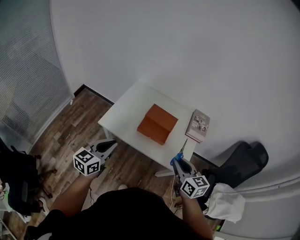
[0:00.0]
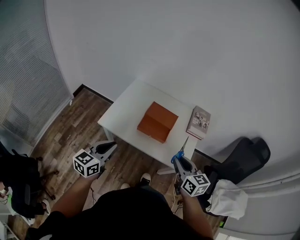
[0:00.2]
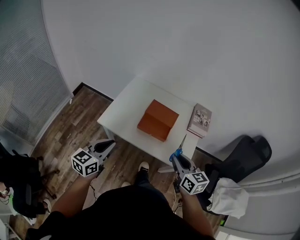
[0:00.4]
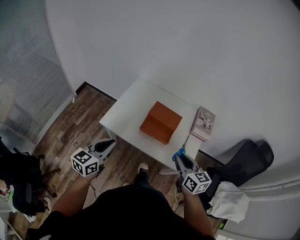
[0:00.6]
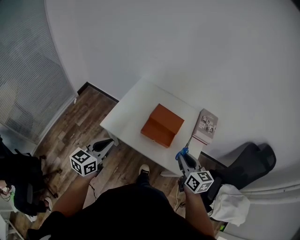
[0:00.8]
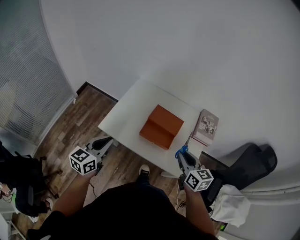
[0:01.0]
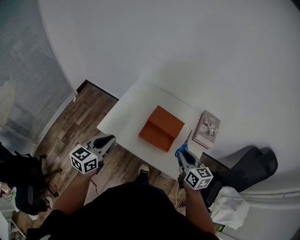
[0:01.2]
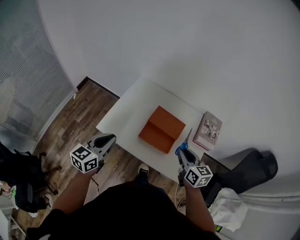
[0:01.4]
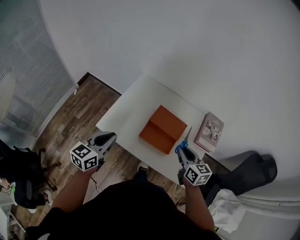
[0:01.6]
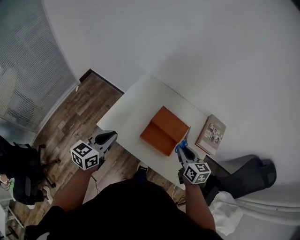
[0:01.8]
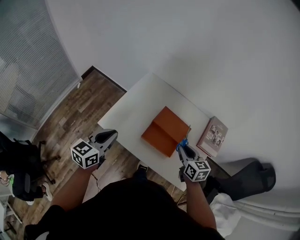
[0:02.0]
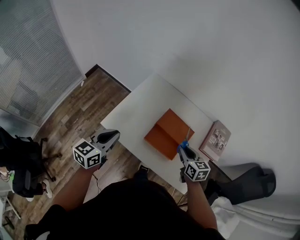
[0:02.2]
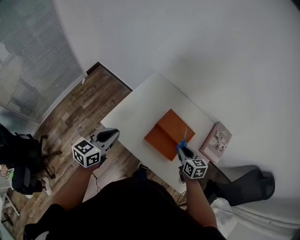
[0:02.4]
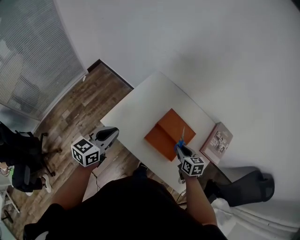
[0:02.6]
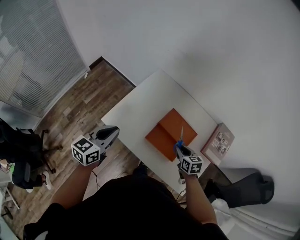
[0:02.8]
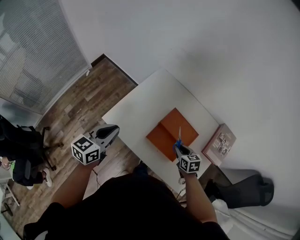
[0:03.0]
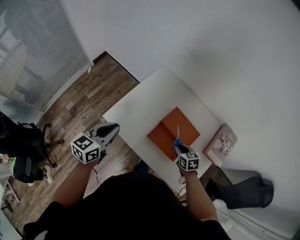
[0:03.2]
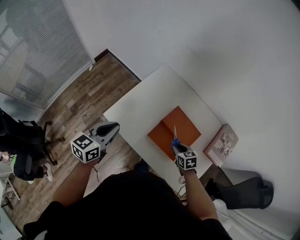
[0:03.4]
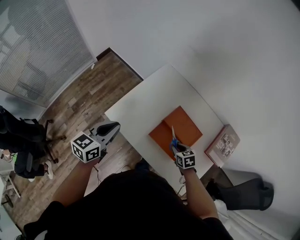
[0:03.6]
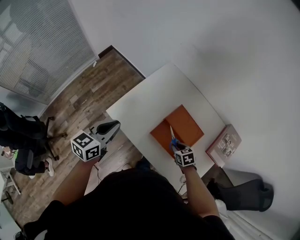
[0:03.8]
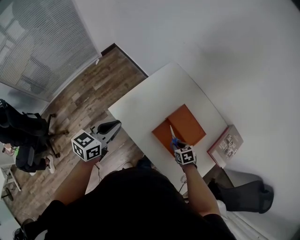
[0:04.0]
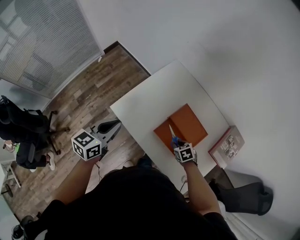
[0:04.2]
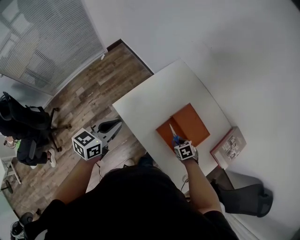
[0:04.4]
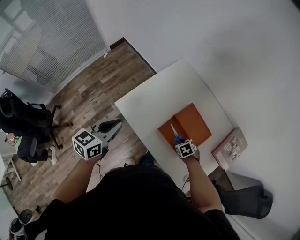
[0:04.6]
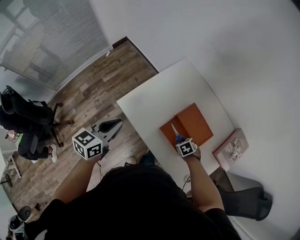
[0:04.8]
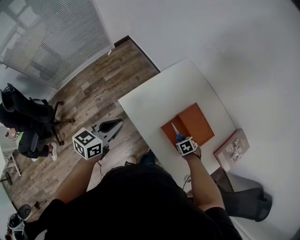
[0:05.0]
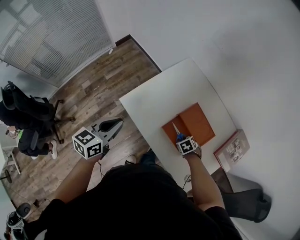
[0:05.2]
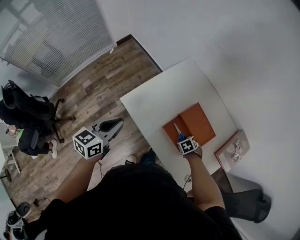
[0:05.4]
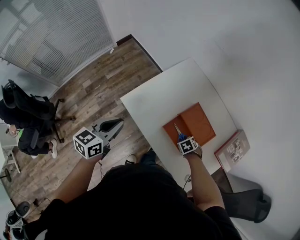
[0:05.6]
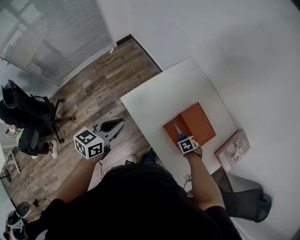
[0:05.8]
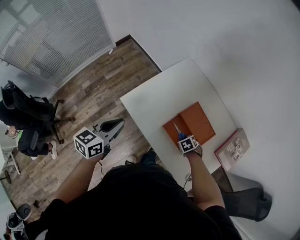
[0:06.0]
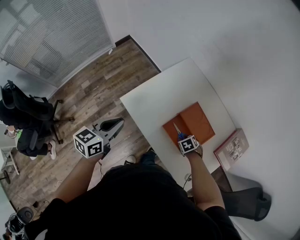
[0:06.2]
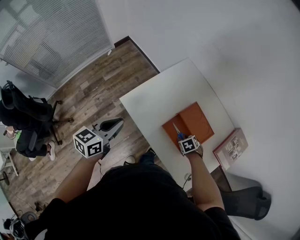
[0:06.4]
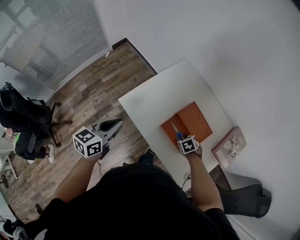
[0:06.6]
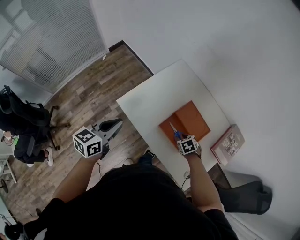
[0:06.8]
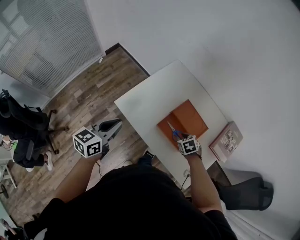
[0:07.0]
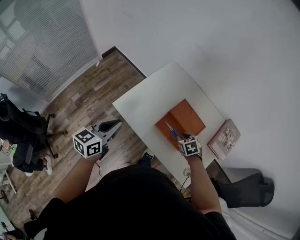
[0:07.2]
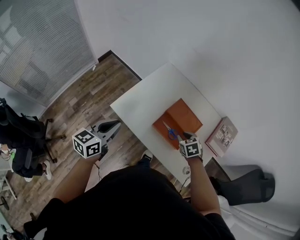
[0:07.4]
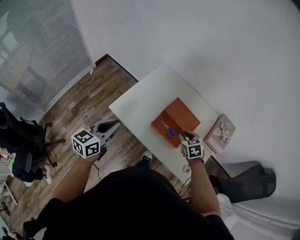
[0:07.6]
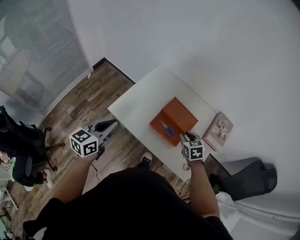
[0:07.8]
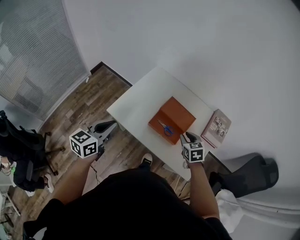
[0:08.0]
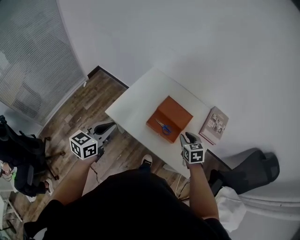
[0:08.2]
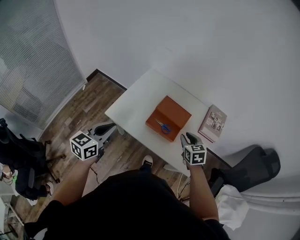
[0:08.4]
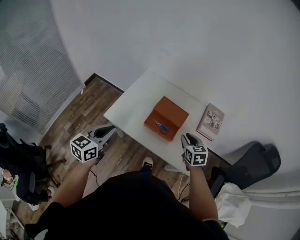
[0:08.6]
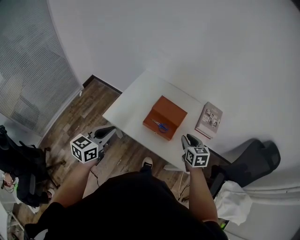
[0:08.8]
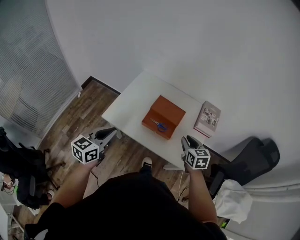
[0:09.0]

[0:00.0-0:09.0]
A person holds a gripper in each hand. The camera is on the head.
0:00.0 to 0:01.6: The two grippers go about 20 cm forward.
0:01.6 to 0:03.0: The right gripper travels downward and forward by some 20 cm, and changes its angle by about 30 degrees; the left gripper goes roughly 5 cm forward.
0:03.0 to 0:04.4: The right gripper is displaced downward by roughly 10 cm, and changes its angle by approximately 30 degrees.
0:04.4 to 0:06.0: The grippers stay close to where they were, moving slightly.
0:06.0 to 0:07.6: The left gripper ends up approximately 5 cm from where it was, while the right gripper is displaced upward by some 20 cm, and rotates approximately 30 degrees.
0:07.6 to 0:09.0: The left gripper goes roughly 5 cm backward; the right gripper heads backward, upward and to the right, covering approximately 15 cm, and rotates some 30 degrees.

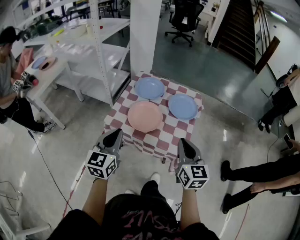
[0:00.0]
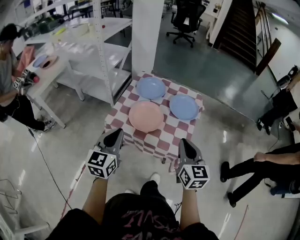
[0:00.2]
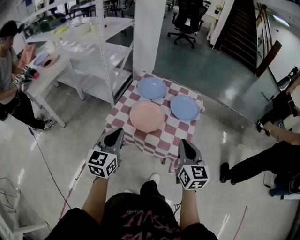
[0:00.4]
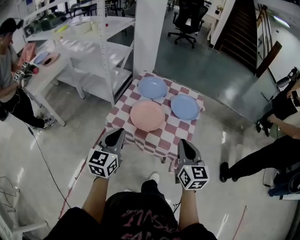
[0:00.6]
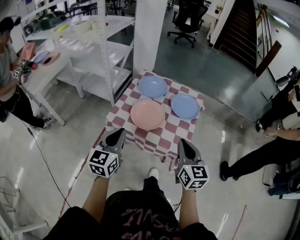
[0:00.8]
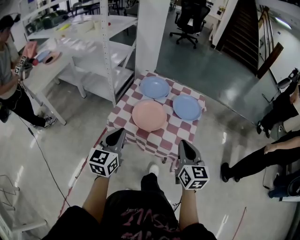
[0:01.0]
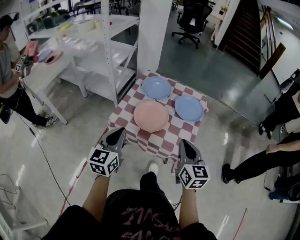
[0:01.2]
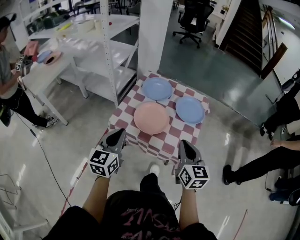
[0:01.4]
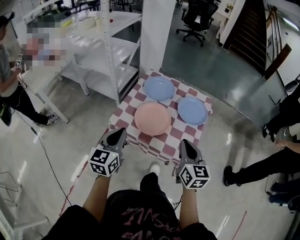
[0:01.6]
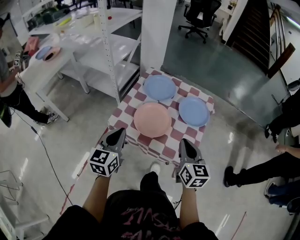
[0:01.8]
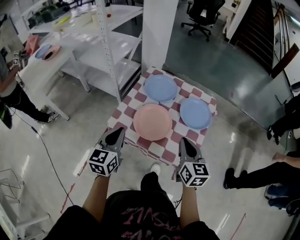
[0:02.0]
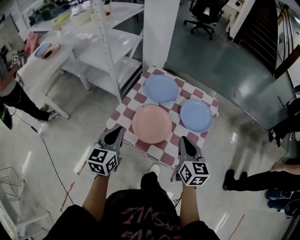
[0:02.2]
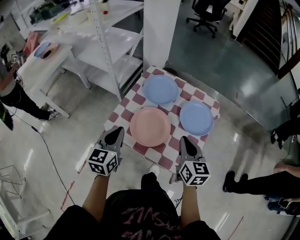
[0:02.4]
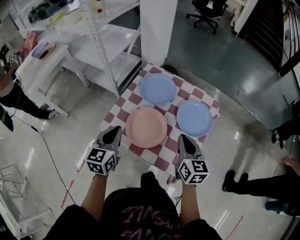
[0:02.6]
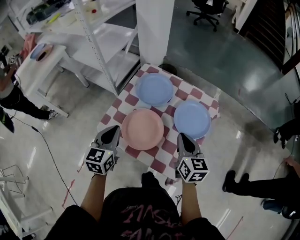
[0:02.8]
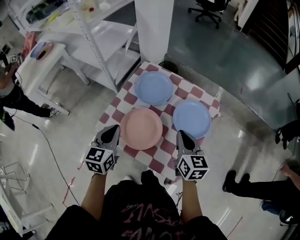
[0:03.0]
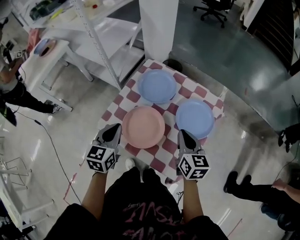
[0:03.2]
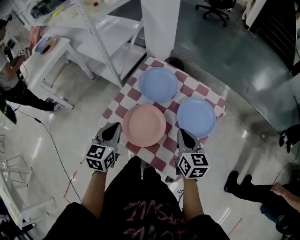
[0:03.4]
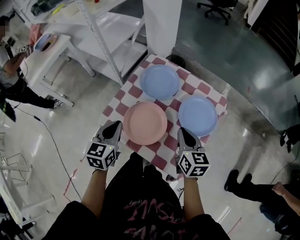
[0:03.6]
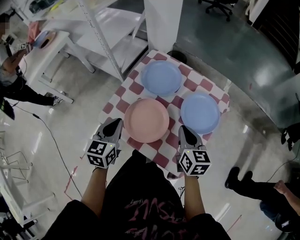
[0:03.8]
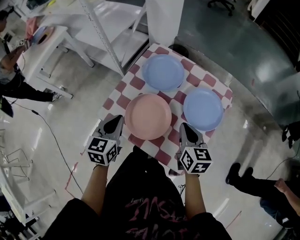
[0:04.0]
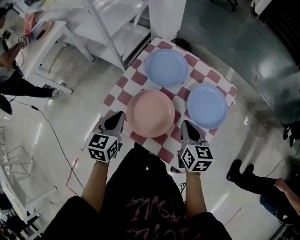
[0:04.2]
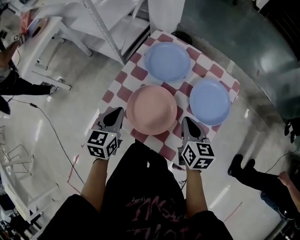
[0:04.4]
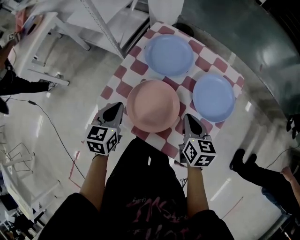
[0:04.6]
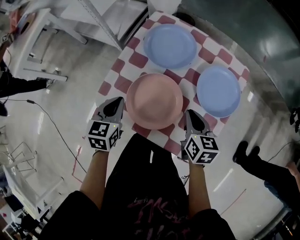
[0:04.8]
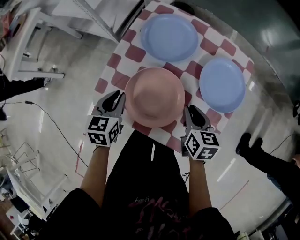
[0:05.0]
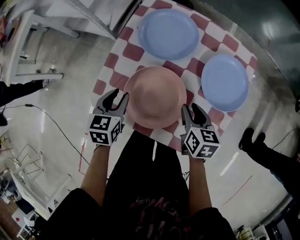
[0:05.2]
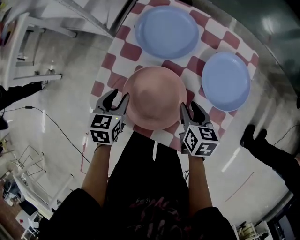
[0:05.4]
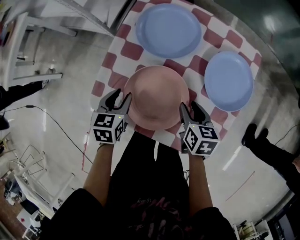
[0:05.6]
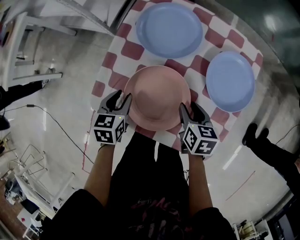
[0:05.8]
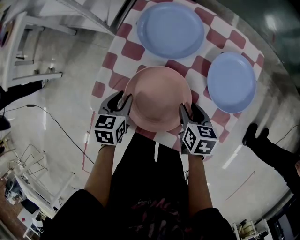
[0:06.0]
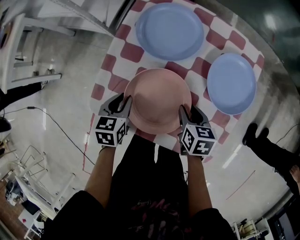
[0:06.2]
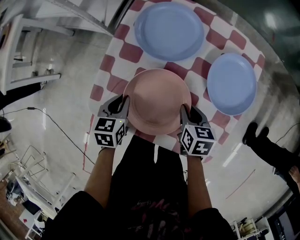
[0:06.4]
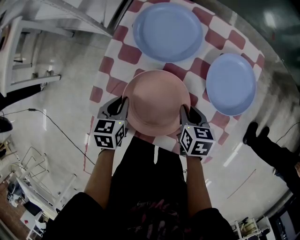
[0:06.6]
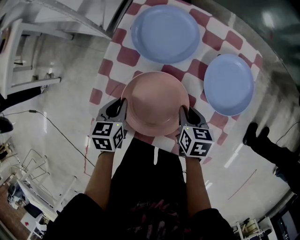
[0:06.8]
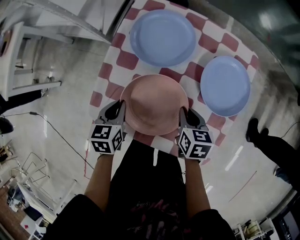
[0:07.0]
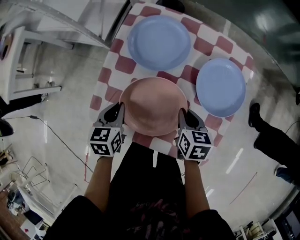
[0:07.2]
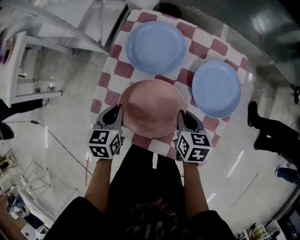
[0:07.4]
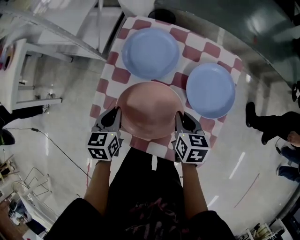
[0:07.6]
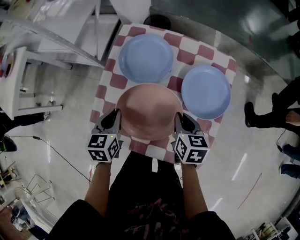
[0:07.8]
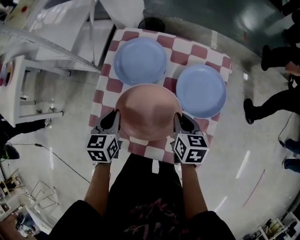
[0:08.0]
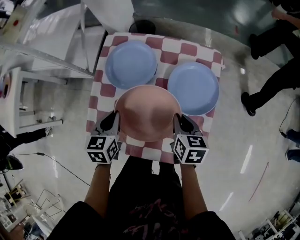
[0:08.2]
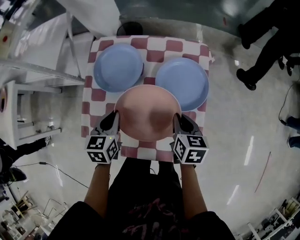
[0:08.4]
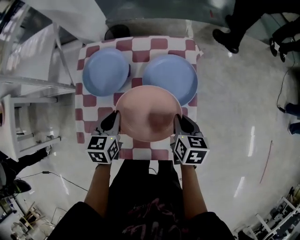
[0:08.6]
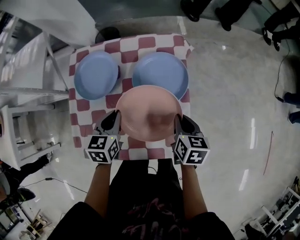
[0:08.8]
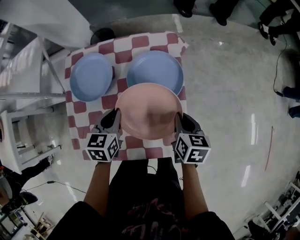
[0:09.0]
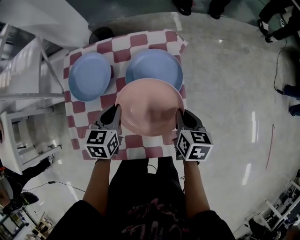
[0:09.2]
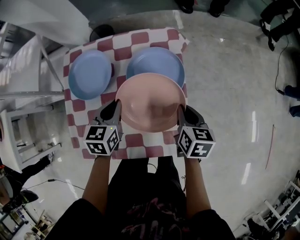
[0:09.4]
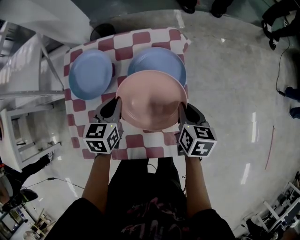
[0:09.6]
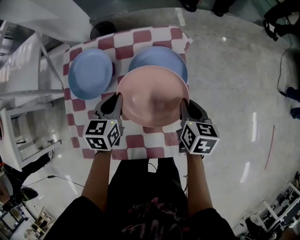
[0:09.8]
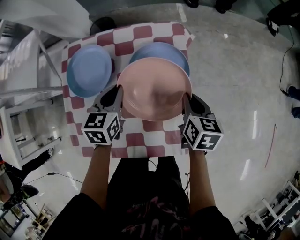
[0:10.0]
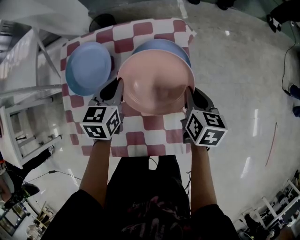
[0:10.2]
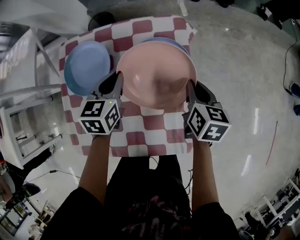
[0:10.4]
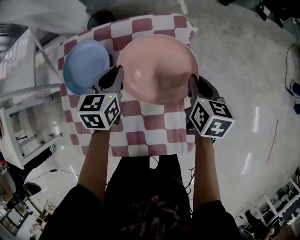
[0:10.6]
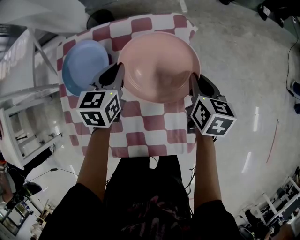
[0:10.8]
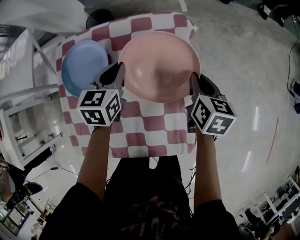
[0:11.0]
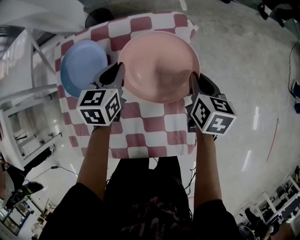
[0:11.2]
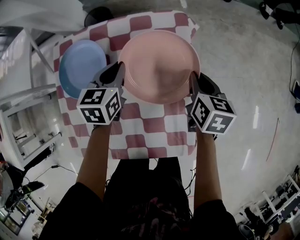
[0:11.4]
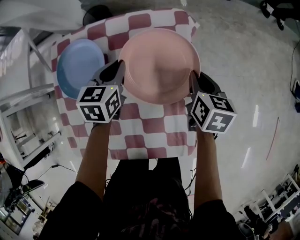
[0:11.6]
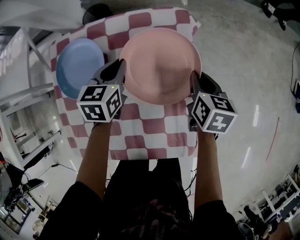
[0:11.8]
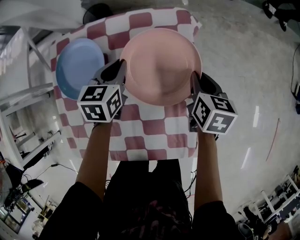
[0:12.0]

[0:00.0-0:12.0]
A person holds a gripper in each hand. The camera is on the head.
0:00.0 to 0:01.6: The right gripper goes about 5 cm forward. The left gripper changes place by about 5 cm.
0:01.6 to 0:03.0: The left gripper goes approximately 20 cm forward and to the right. Meanwhile the right gripper travels forward by some 20 cm.
0:03.0 to 0:04.4: The two grippers go some 10 cm downward.
0:04.4 to 0:06.0: Both grippers travel together downward, approximately 15 cm. The right gripper rotates about 20 degrees, and opens up. The left gripper opens its fingers.
0:06.0 to 0:07.6: The two grippers go about 5 cm upward. The right gripper closes its fingers. Meanwhile the left gripper closes its fingers.
0:07.6 to 0:09.0: The left gripper moves roughly 20 cm, and rotates approximately 30 degrees, while the right gripper changes place by about 20 cm, and swivels approximately 30 degrees.
0:09.0 to 0:10.4: The two grippers go about 10 cm forward.
0:10.4 to 0:12.0: The right gripper moves approximately 5 cm. Meanwhile the left gripper heads downward and forward, covering about 10 cm.

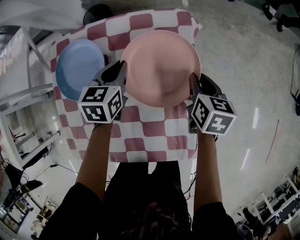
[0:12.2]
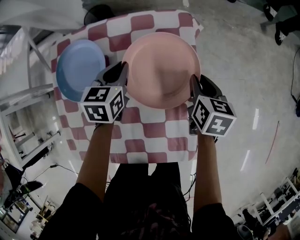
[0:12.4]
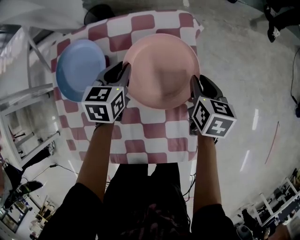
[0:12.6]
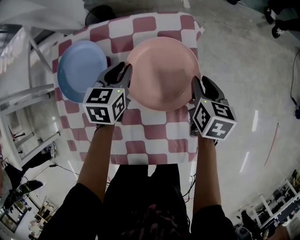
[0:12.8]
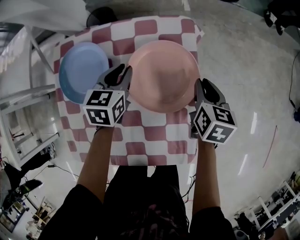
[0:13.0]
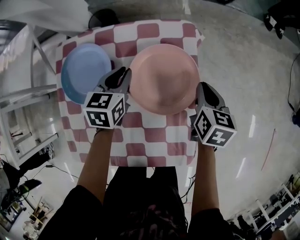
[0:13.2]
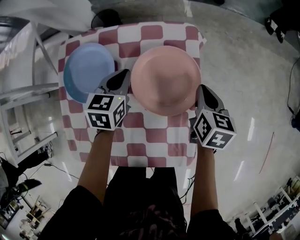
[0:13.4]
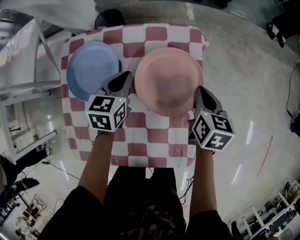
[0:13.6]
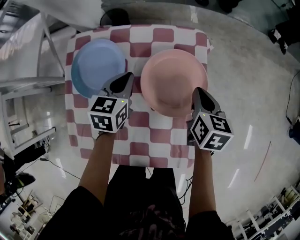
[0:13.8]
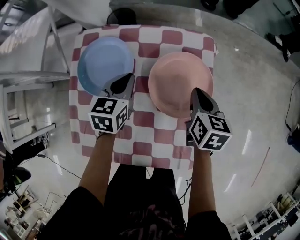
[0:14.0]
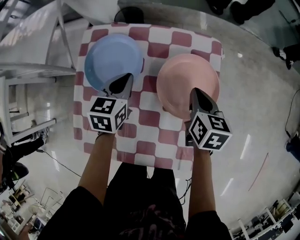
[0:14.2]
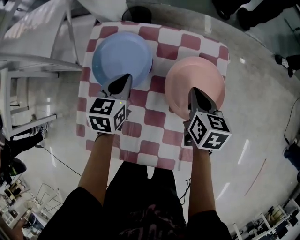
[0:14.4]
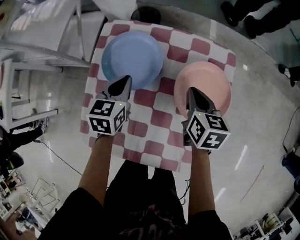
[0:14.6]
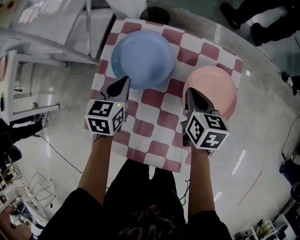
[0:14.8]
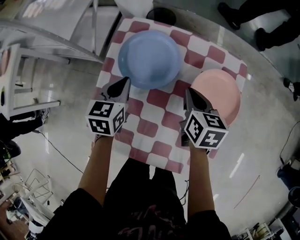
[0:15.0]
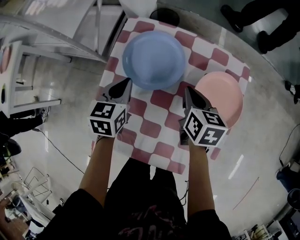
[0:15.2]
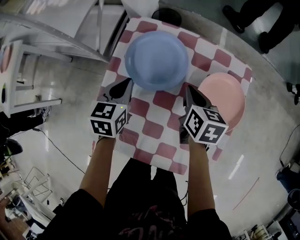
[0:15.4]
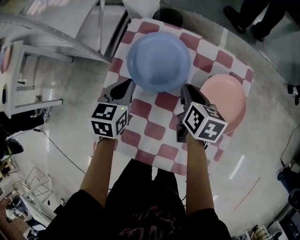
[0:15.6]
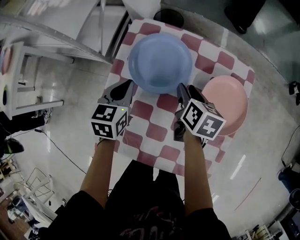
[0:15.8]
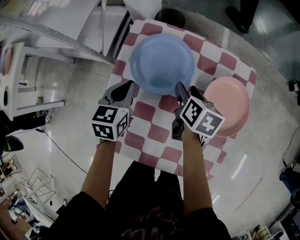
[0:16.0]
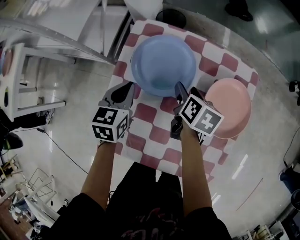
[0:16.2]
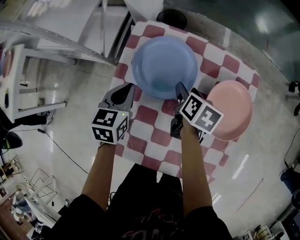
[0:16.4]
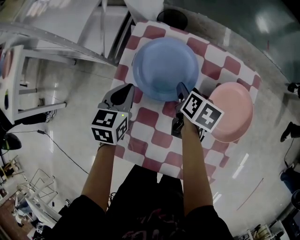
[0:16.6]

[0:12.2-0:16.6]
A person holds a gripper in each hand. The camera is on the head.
0:12.2 to 0:13.6: There are only small adjustments of the grippers.
0:13.6 to 0:15.2: The right gripper ends up about 25 cm from where it was, and changes its angle by about 20 degrees; the left gripper changes place by some 25 cm.
0:15.2 to 0:16.6: The right gripper shifts approximately 5 cm downward, swivels some 20 degrees, and opens.
